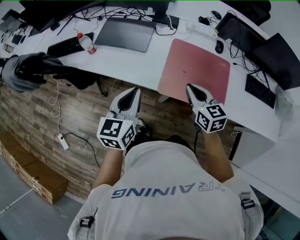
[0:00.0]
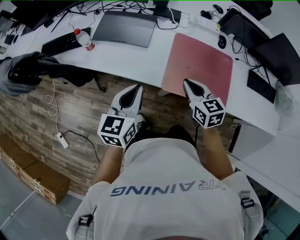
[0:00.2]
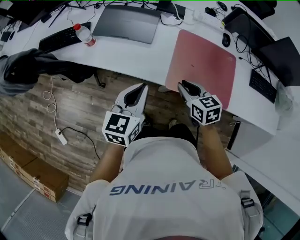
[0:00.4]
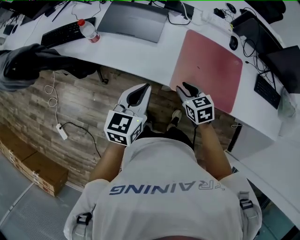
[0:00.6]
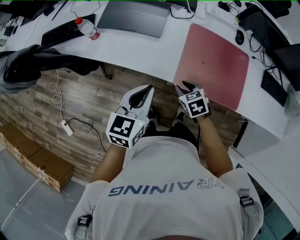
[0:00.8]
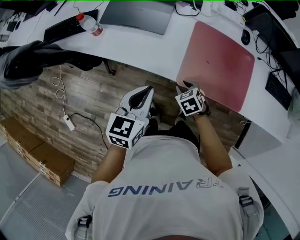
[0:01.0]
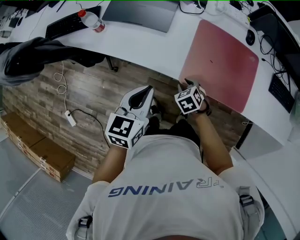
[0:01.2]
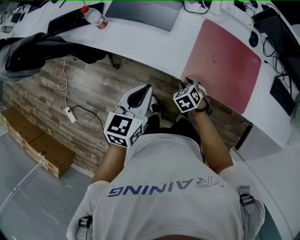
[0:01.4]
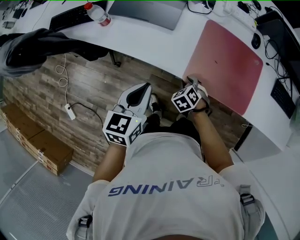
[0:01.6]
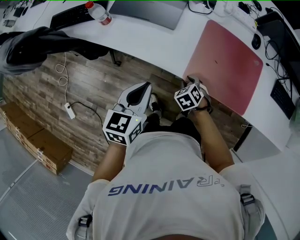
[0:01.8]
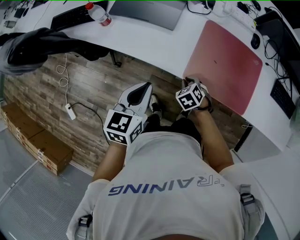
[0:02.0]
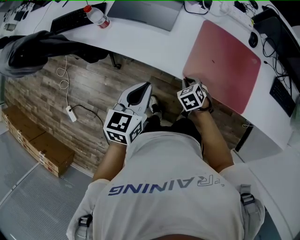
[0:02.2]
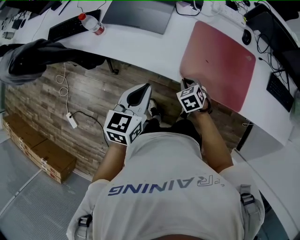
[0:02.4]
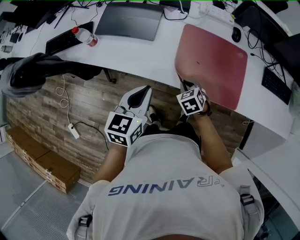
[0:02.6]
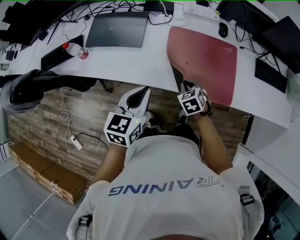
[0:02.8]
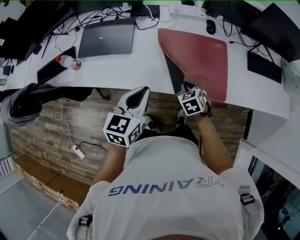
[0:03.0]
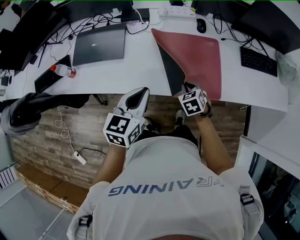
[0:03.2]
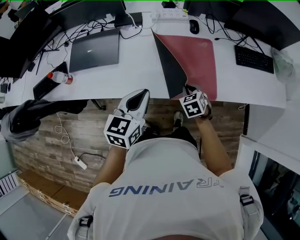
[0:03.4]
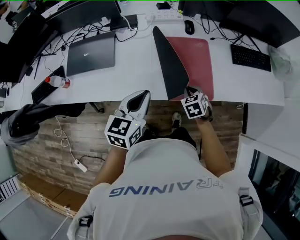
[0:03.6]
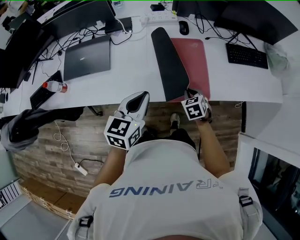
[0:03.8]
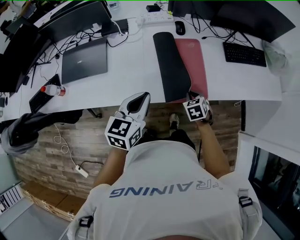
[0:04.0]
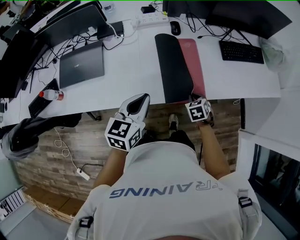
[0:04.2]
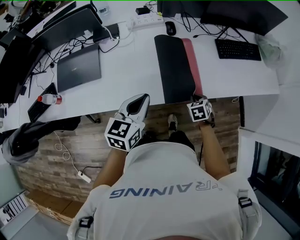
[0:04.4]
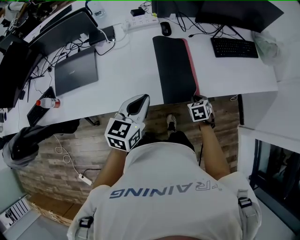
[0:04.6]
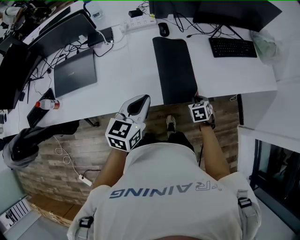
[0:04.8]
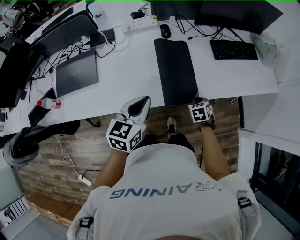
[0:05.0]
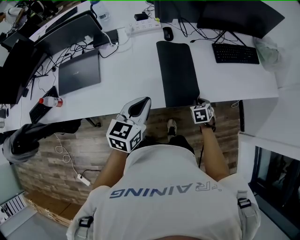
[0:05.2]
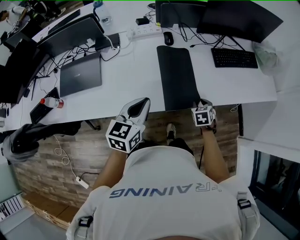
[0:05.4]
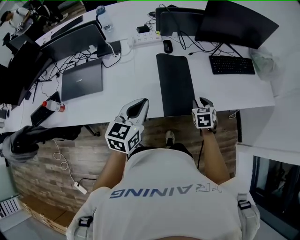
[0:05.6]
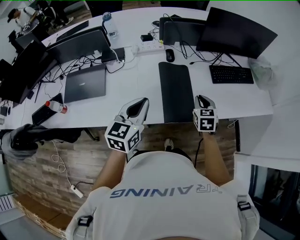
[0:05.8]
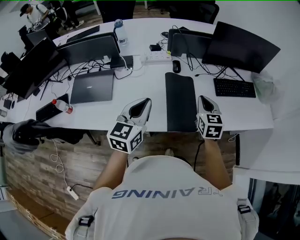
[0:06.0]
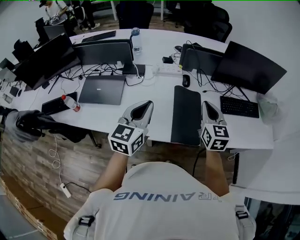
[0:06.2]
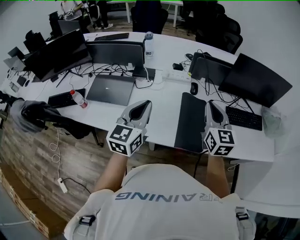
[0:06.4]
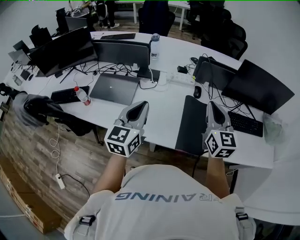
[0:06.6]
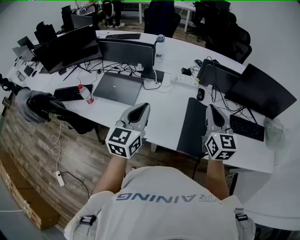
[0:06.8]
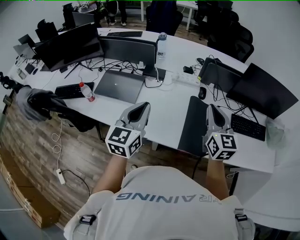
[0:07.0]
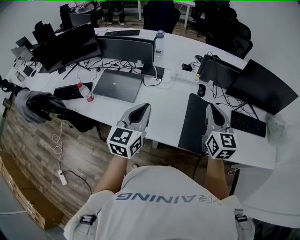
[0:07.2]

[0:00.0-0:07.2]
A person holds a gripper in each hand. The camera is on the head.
0:00.0 to 0:01.4: The left gripper travels downward by about 10 cm, while the right gripper shifts roughly 25 cm downward, angles its fingers downward, by some 40 degrees, and opens.
0:01.4 to 0:02.8: The right gripper is displaced to the right and upward by approximately 10 cm, and closes. Meanwhile the left gripper goes some 10 cm to the right.
0:02.8 to 0:04.4: The left gripper goes roughly 20 cm to the right and forward, while the right gripper shifts some 25 cm to the right, and changes its angle by approximately 30 degrees.
0:04.4 to 0:05.8: The right gripper goes some 20 cm upward and forward, changes its angle by approximately 30 degrees, and opens, then closes once more; the left gripper moves upward, some 5 cm.
0:05.8 to 0:07.2: The right gripper shifts roughly 20 cm upward, and tips its fingers upward by approximately 30 degrees. Meanwhile the left gripper shifts by roughly 15 cm, and rotates approximately 20 degrees.

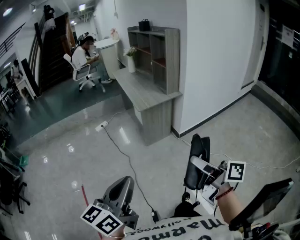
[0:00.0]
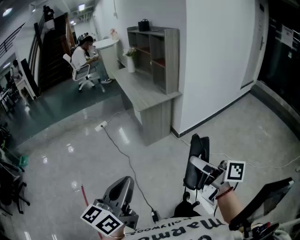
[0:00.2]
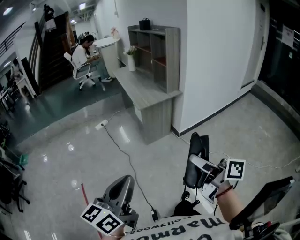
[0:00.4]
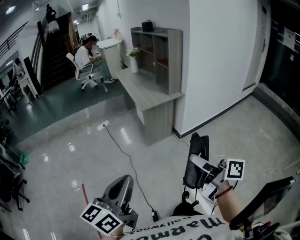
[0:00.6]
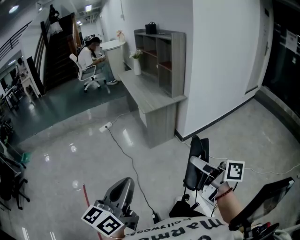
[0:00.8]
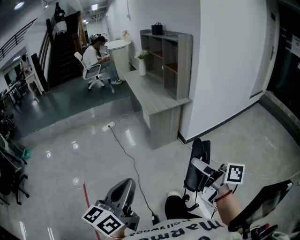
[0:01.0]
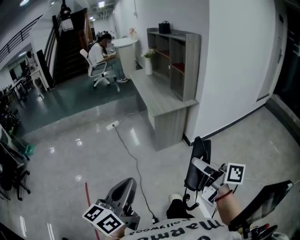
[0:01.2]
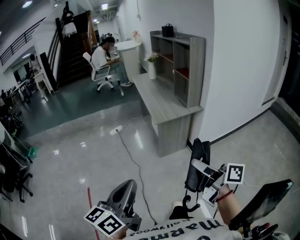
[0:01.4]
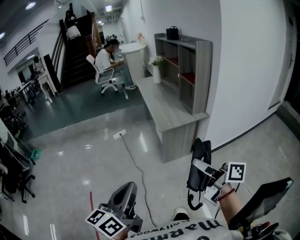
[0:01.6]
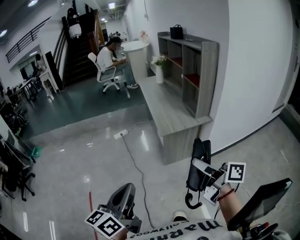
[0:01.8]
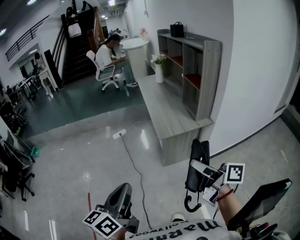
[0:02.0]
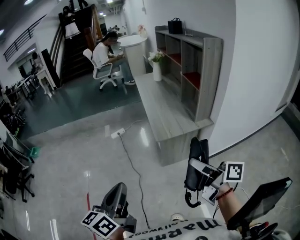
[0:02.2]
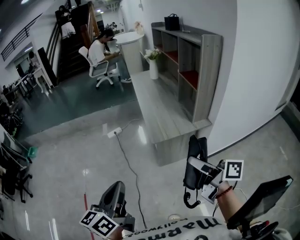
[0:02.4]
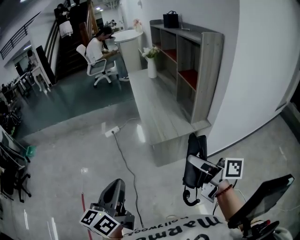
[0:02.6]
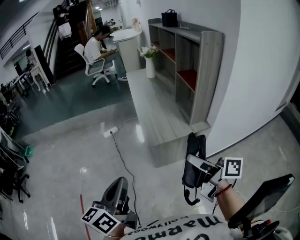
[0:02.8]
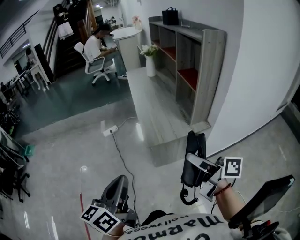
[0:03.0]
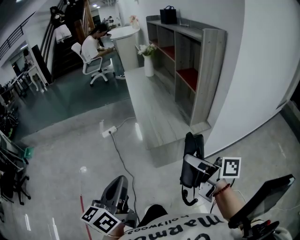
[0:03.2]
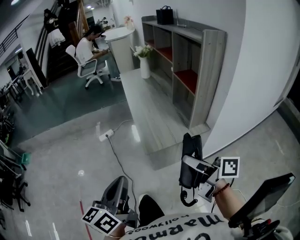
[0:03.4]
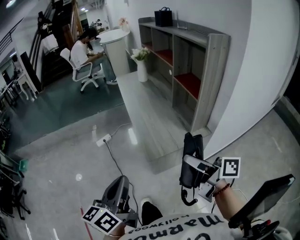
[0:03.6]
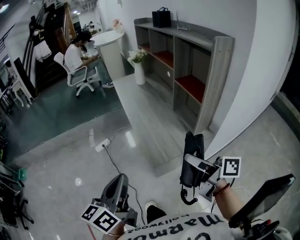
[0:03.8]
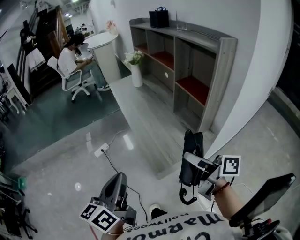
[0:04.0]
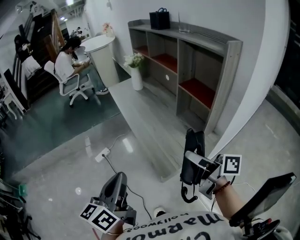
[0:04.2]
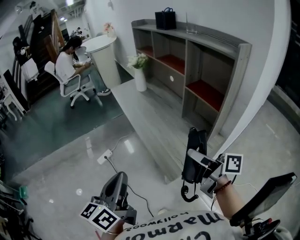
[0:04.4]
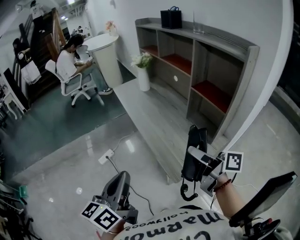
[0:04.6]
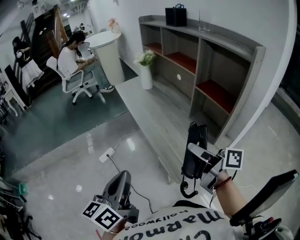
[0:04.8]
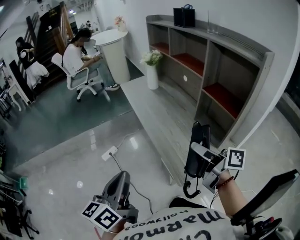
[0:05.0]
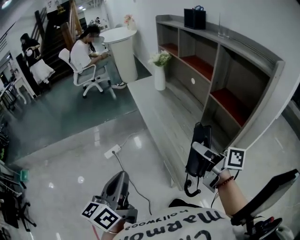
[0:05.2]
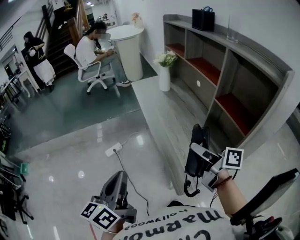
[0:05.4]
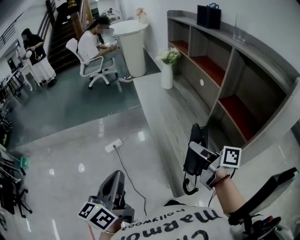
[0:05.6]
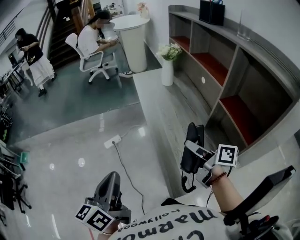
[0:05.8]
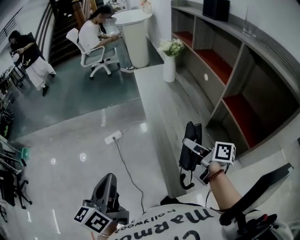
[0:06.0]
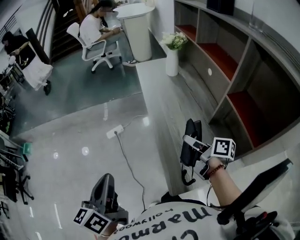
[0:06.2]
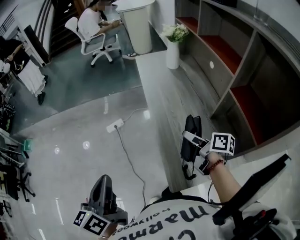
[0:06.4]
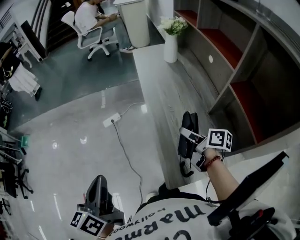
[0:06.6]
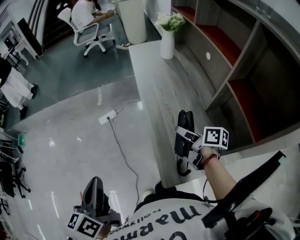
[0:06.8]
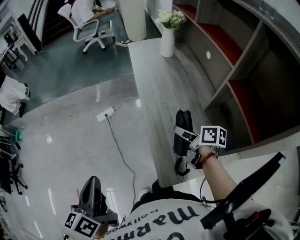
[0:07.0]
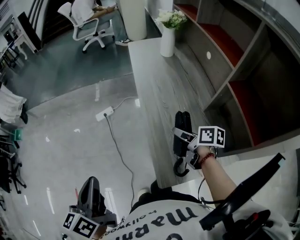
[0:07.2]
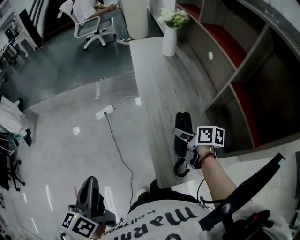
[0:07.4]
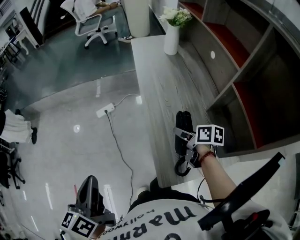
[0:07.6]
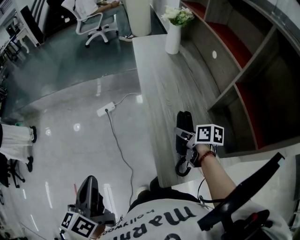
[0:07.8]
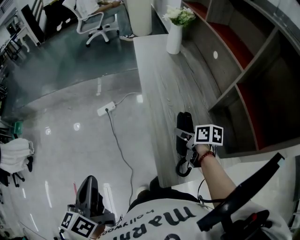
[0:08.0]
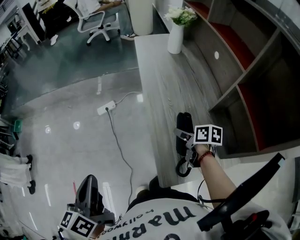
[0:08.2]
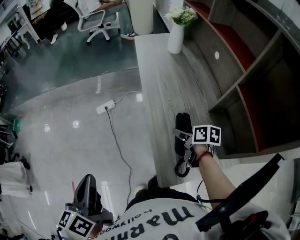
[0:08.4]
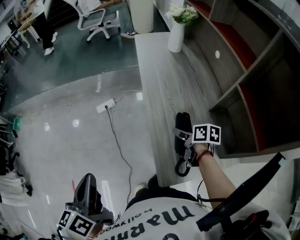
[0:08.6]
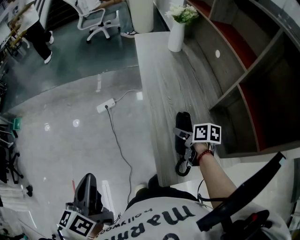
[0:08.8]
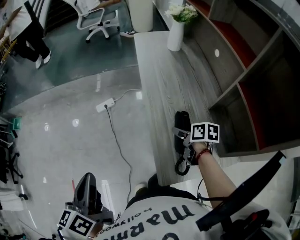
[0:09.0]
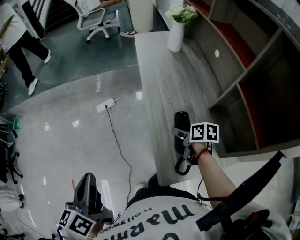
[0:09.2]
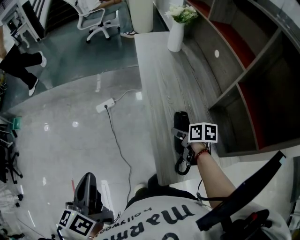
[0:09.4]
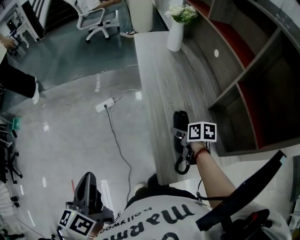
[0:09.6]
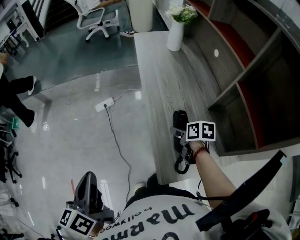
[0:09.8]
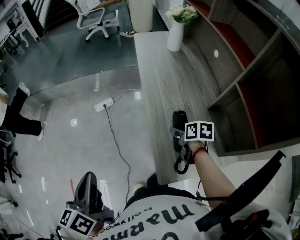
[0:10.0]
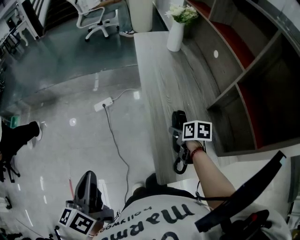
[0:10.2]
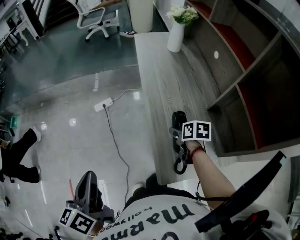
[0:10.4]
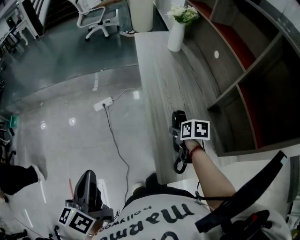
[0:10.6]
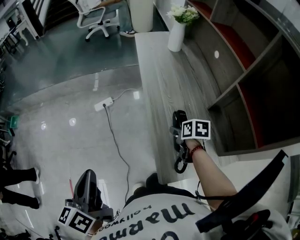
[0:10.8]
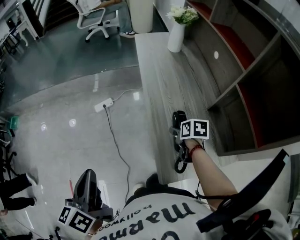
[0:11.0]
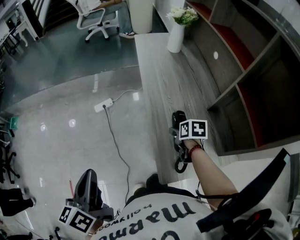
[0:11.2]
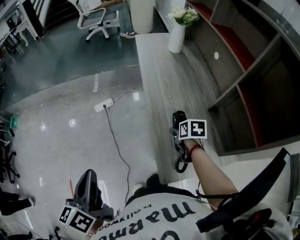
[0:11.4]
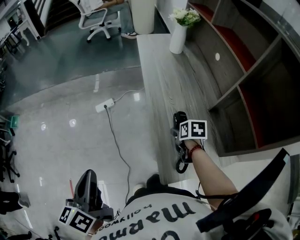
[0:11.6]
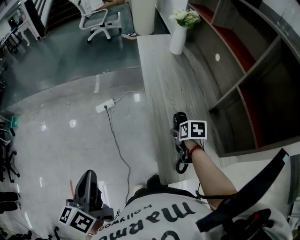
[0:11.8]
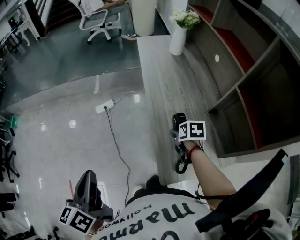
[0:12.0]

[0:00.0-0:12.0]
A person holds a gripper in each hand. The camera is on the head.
0:00.0 to 0:01.6: Both grippers travel together forward, some 15 cm.
0:01.6 to 0:03.0: Both grippers move forward and to the right, approximately 25 cm.
0:03.0 to 0:04.4: The two grippers go roughly 25 cm forward.
0:04.4 to 0:06.0: The left gripper heads forward, covering about 10 cm, and turns by approximately 20 degrees. The right gripper goes about 25 cm forward and downward, and swivels some 20 degrees.
0:06.0 to 0:07.6: The right gripper travels downward by some 15 cm, and swivels about 30 degrees. The left gripper is displaced downward by roughly 5 cm.
0:07.6 to 0:09.0: The grippers stay close to where they were, moving slightly.
0:09.0 to 0:10.4: The grippers move only a little.
0:10.4 to 0:12.0: The grippers make only small movements.

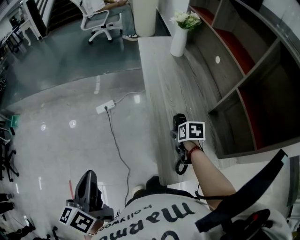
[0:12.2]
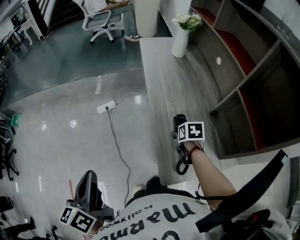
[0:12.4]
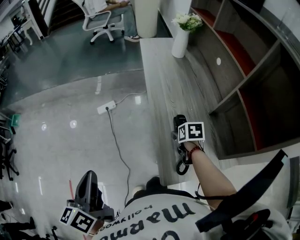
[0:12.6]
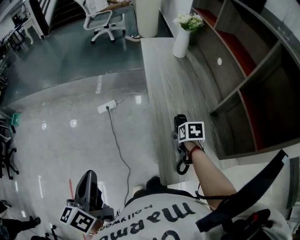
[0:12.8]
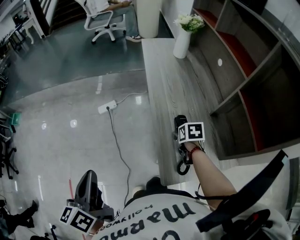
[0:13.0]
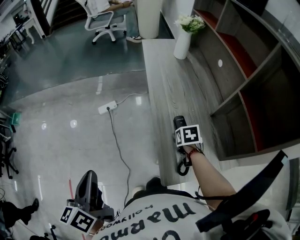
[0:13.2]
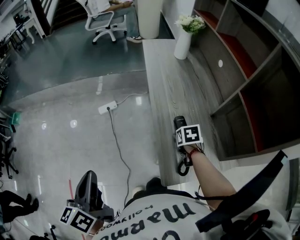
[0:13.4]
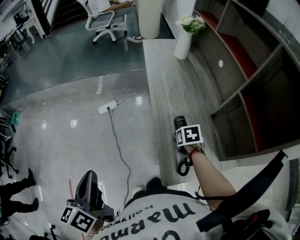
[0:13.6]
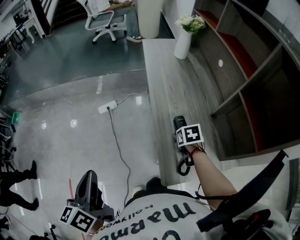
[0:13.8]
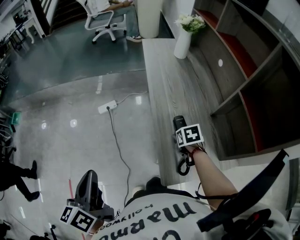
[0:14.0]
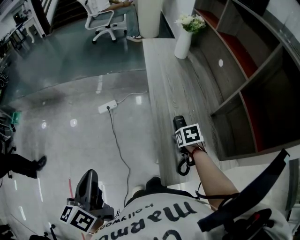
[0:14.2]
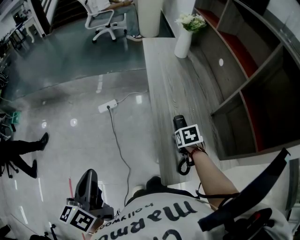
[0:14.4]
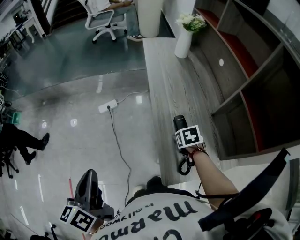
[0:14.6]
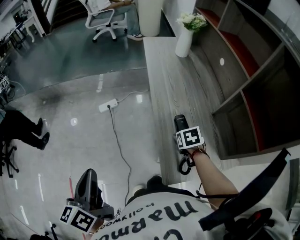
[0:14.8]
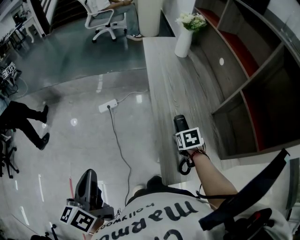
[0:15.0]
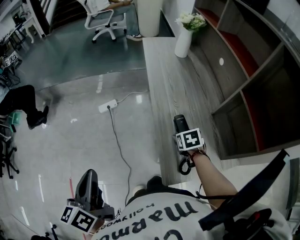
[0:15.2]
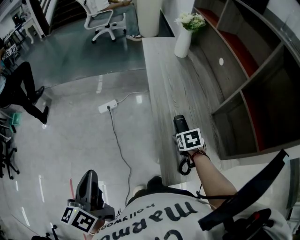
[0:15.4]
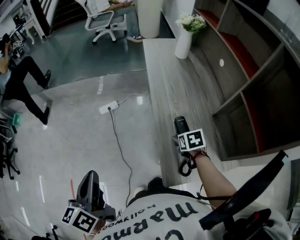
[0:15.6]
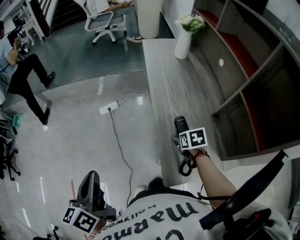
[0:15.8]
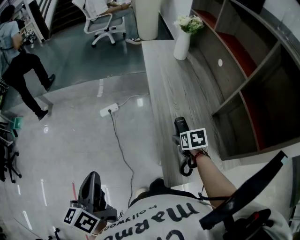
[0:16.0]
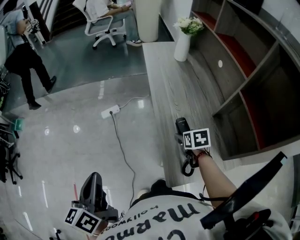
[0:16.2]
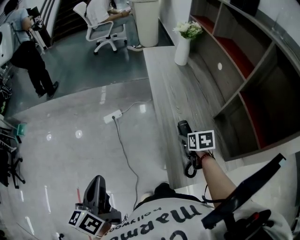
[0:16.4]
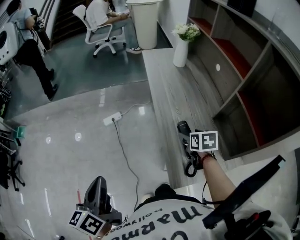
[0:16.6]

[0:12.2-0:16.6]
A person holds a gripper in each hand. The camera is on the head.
0:12.2 to 0:13.6: The grippers move only a little.
0:13.6 to 0:15.2: There are only small adjustments of the grippers.
0:15.2 to 0:16.6: The right gripper shifts about 5 cm upward.
